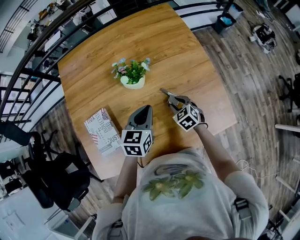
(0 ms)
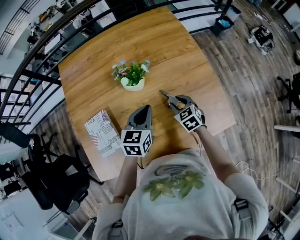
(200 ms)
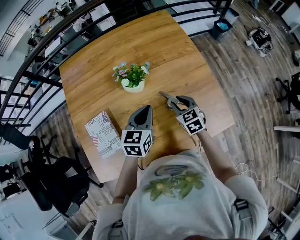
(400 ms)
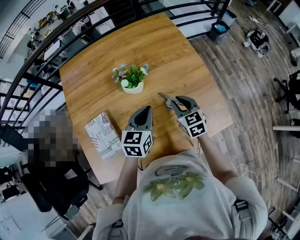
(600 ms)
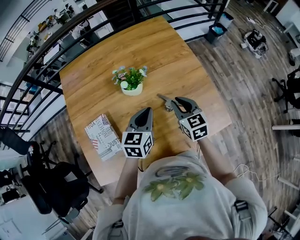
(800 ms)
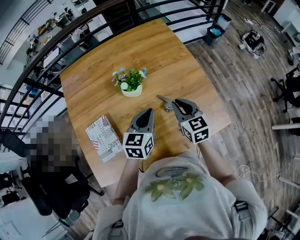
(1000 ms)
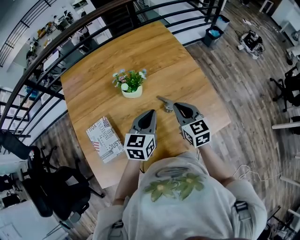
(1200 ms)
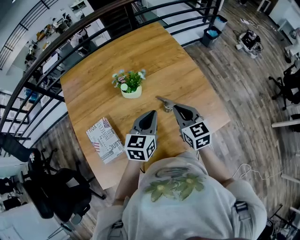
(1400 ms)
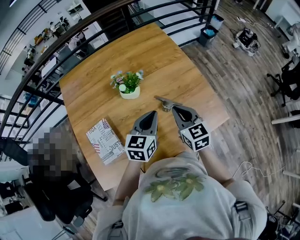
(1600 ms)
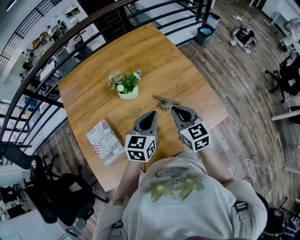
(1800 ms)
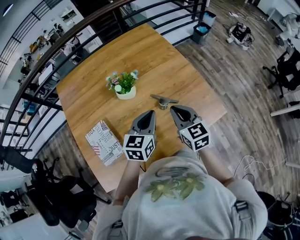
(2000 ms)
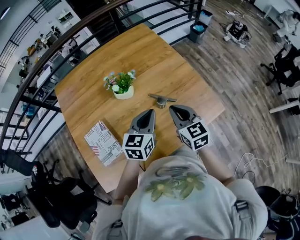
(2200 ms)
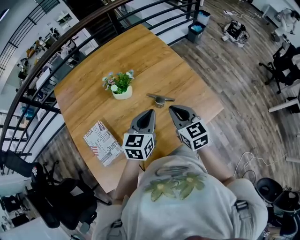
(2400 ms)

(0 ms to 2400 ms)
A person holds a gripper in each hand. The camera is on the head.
0 ms - 1200 ms: The right gripper is displaced upward by some 20 cm, turns by roughly 30 degrees, and closes its fingers. Meanwhile the left gripper heads upward, covering some 5 cm.
1200 ms - 2400 ms: The right gripper goes about 5 cm backward.

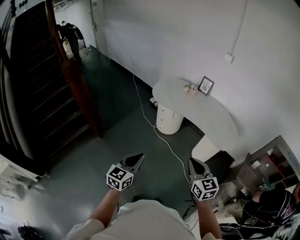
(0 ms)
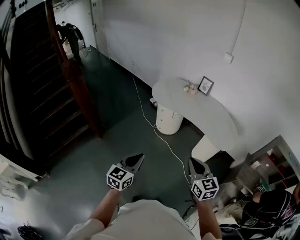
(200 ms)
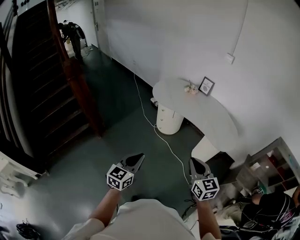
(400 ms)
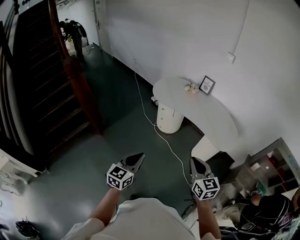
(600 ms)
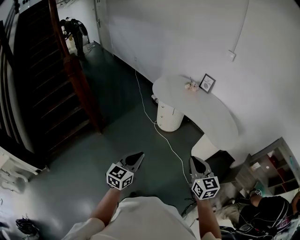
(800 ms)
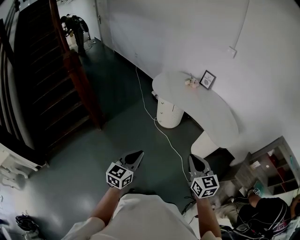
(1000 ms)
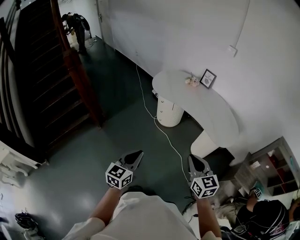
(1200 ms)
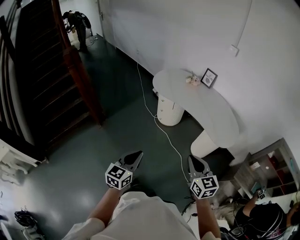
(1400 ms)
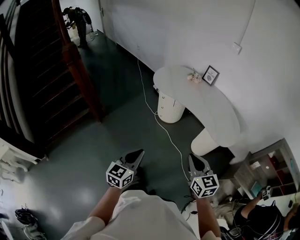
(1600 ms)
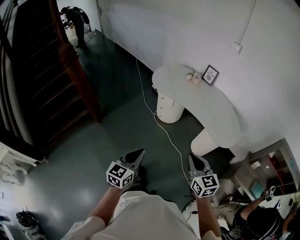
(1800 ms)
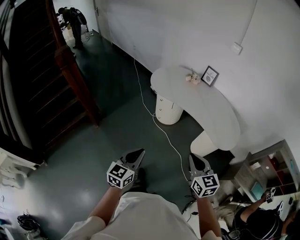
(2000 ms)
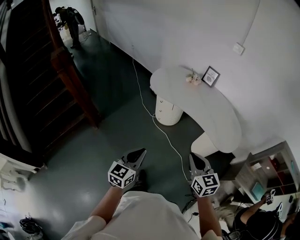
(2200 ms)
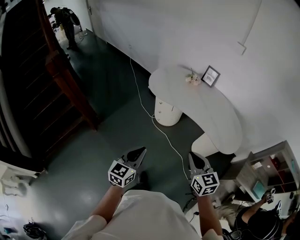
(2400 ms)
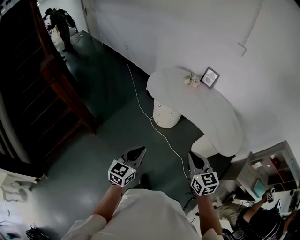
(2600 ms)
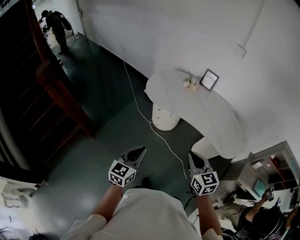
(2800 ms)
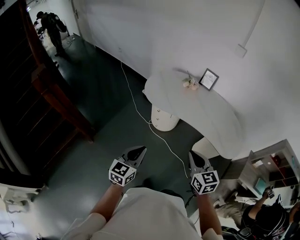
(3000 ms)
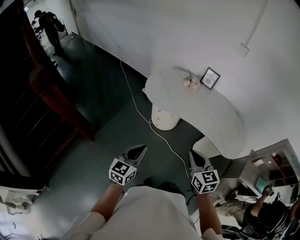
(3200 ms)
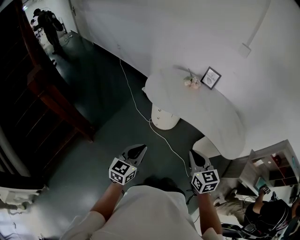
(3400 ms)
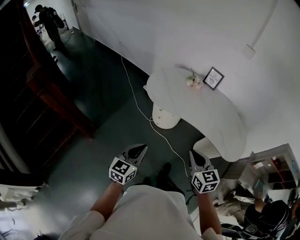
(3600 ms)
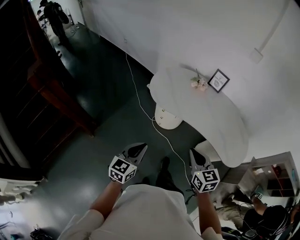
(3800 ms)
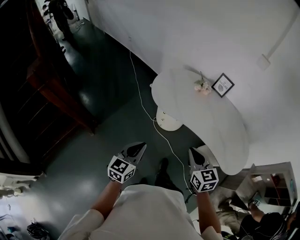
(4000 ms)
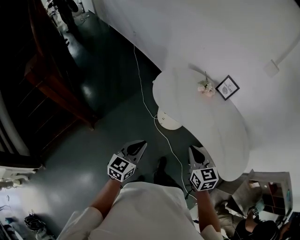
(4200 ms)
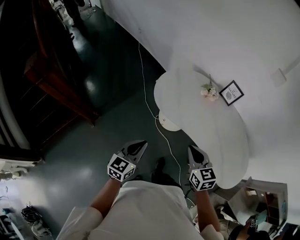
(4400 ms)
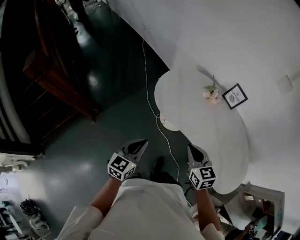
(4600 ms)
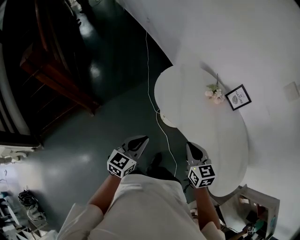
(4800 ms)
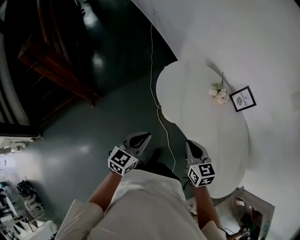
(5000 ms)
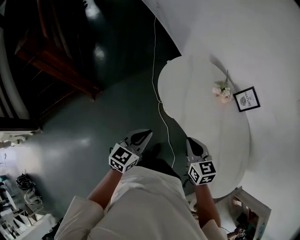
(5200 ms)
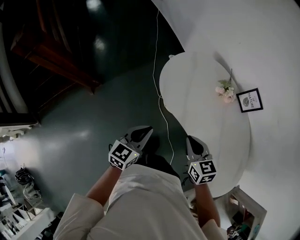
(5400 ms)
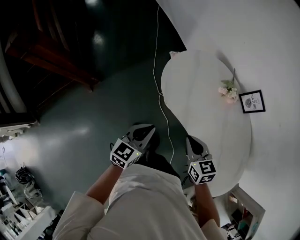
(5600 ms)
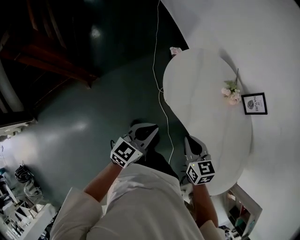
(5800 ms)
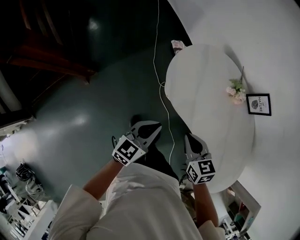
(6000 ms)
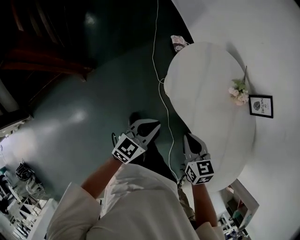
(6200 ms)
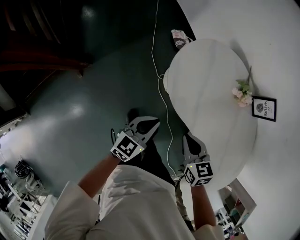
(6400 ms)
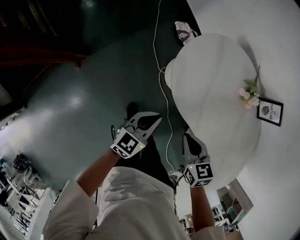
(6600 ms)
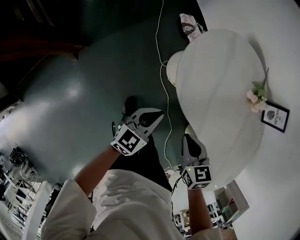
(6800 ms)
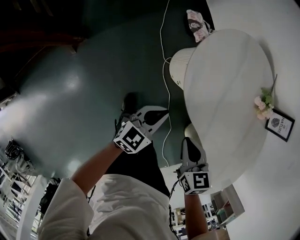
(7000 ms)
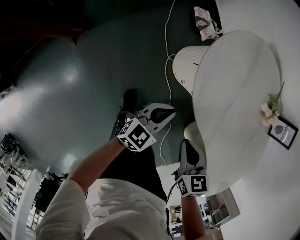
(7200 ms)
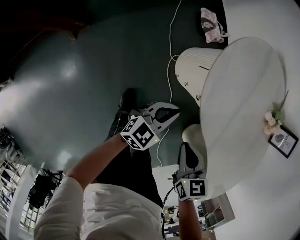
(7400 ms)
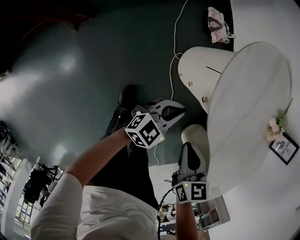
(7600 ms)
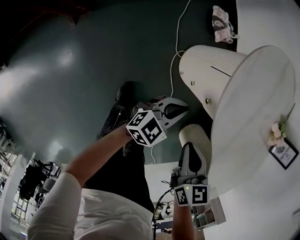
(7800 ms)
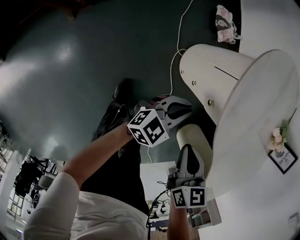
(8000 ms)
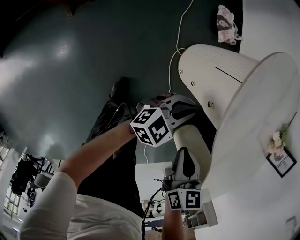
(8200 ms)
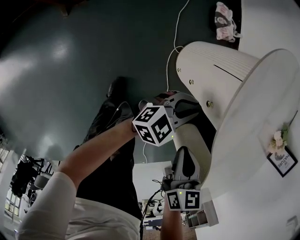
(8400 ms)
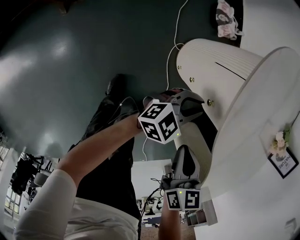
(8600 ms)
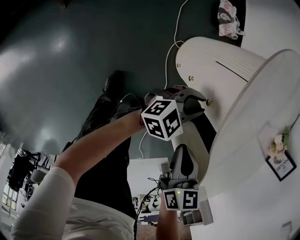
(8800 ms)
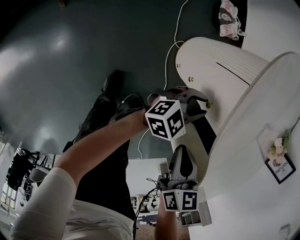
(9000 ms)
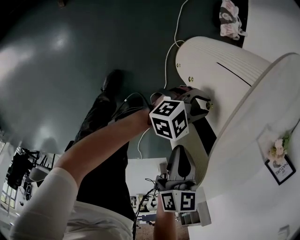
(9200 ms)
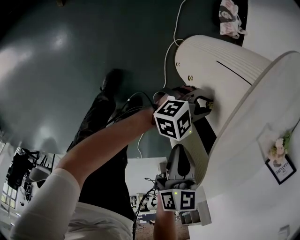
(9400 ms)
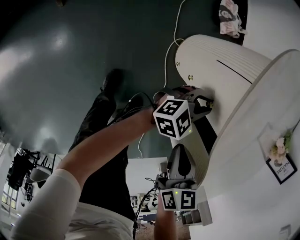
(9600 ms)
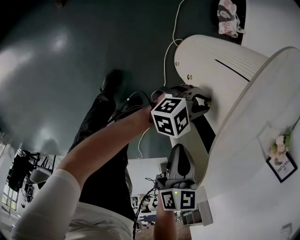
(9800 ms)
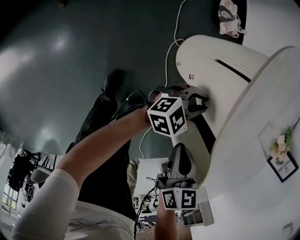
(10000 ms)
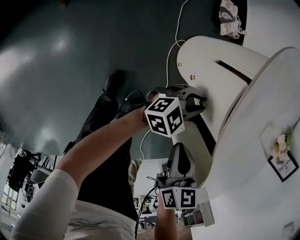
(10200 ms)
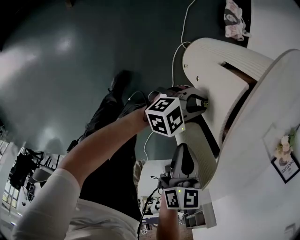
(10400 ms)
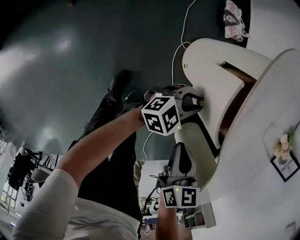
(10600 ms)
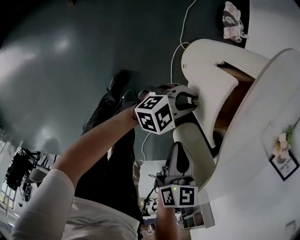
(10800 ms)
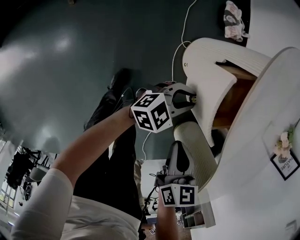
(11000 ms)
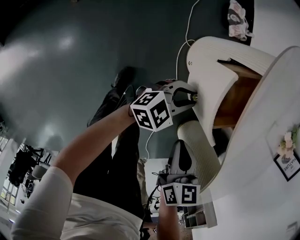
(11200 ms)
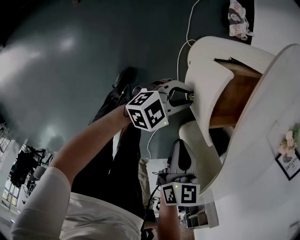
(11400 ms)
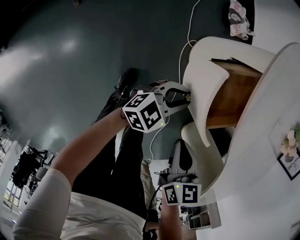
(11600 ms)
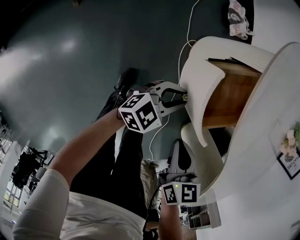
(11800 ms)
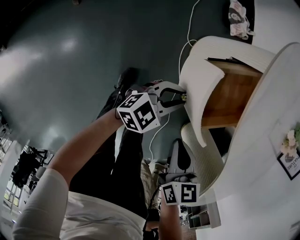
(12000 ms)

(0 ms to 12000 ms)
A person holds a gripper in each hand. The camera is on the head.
0 ms - 1600 ms: The grippers both shift to the right by approximately 5 cm.
1600 ms - 3000 ms: The left gripper shifts roughly 30 cm forward, while the right gripper moves forward and to the left, roughly 25 cm.
3000 ms - 4400 ms: Both grippers move forward, about 20 cm.
4400 ms - 6000 ms: The two grippers go about 25 cm forward and downward. The right gripper turns by about 20 degrees.
6000 ms - 7600 ms: Both grippers travel together downward, about 30 cm.
7600 ms - 9000 ms: The right gripper shifts approximately 10 cm downward; the left gripper is displaced downward, to the right and forward by some 15 cm, and opens up.
9000 ms - 10400 ms: The grippers stay close to where they were, moving slightly.
10400 ms - 12000 ms: The left gripper shifts roughly 10 cm backward and to the left; the right gripper shifts by roughly 5 cm.

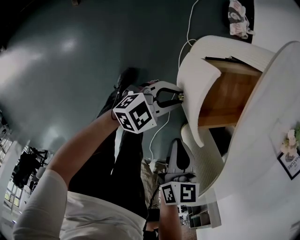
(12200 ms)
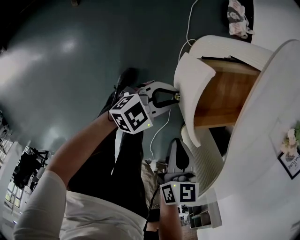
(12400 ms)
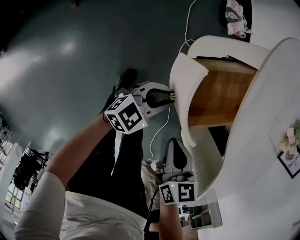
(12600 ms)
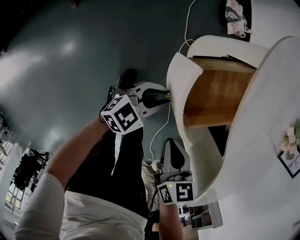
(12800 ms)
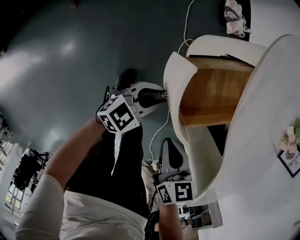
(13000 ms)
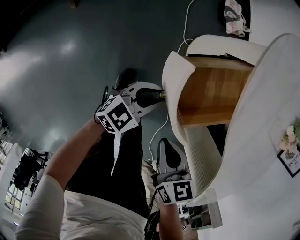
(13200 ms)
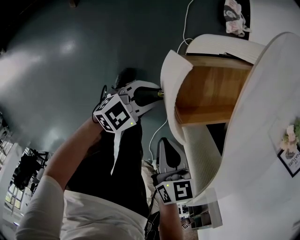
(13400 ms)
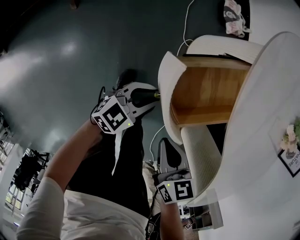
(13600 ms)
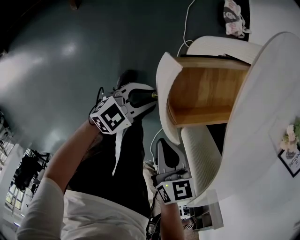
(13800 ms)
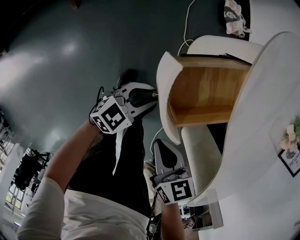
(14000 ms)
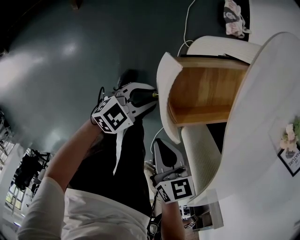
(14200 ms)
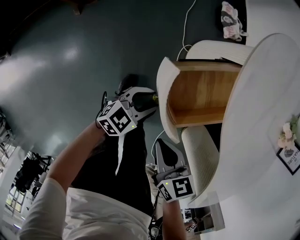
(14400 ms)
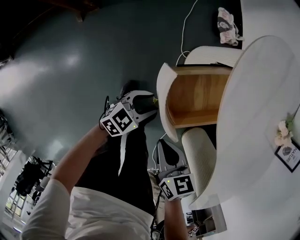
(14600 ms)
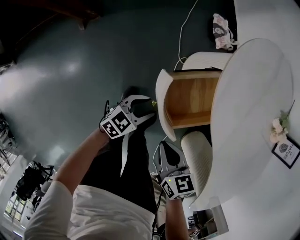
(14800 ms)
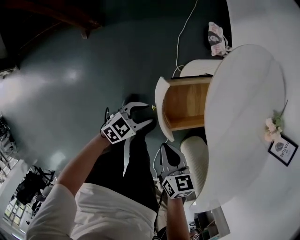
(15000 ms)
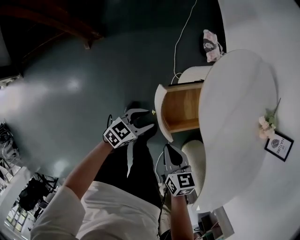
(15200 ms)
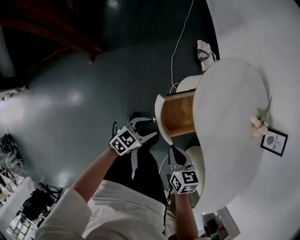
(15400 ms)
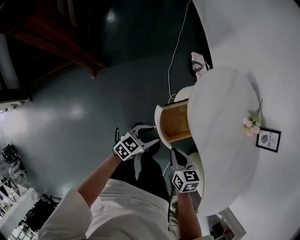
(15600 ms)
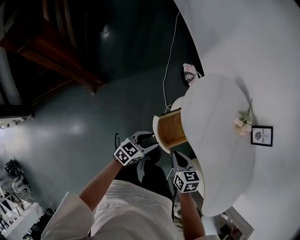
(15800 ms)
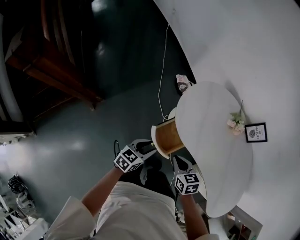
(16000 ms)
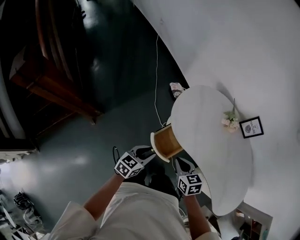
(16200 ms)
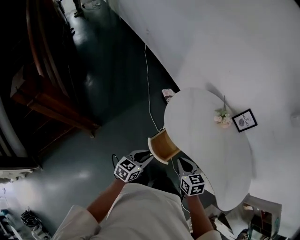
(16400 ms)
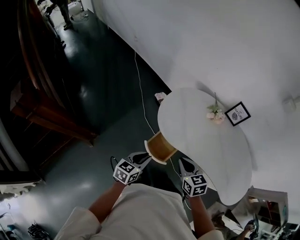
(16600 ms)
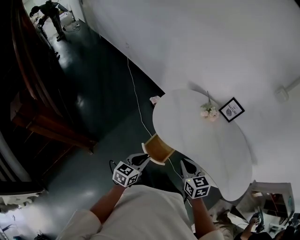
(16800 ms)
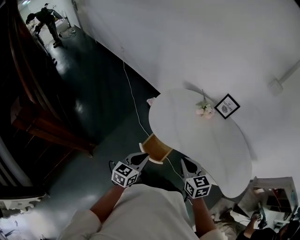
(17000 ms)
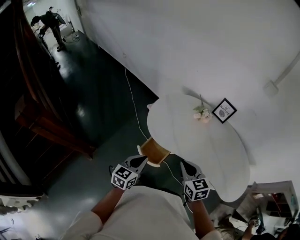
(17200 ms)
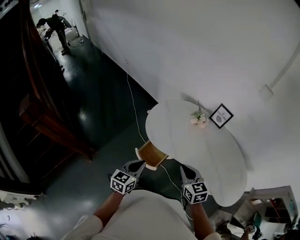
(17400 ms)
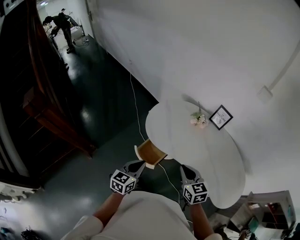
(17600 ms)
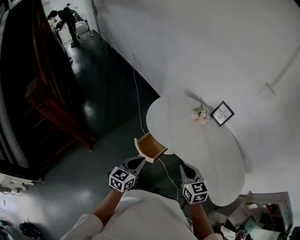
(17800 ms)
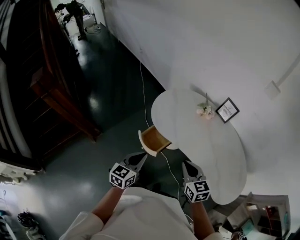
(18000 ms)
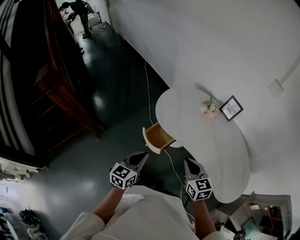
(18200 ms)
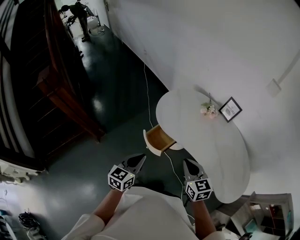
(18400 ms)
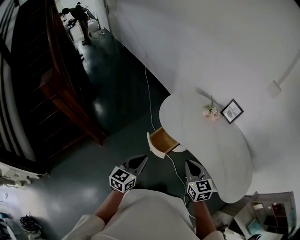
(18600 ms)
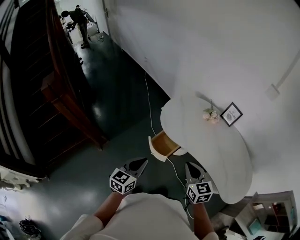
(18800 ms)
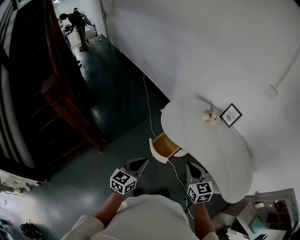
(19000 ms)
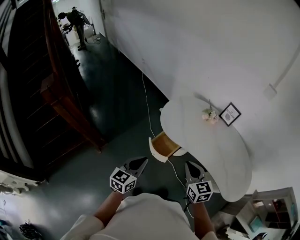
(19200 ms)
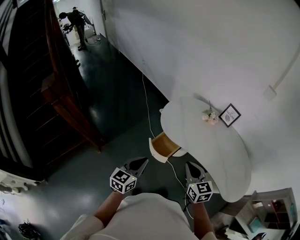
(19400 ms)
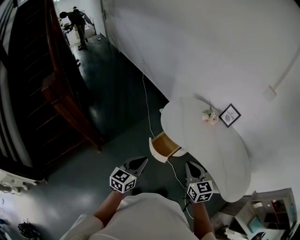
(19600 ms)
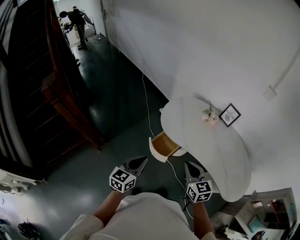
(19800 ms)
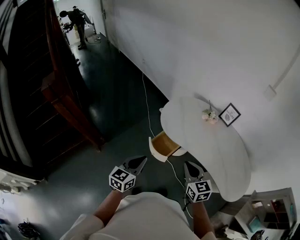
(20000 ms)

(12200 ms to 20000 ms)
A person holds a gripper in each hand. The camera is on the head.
12200 ms - 13800 ms: The left gripper is displaced to the left by about 5 cm.
13800 ms - 15400 ms: Both grippers travel together upward, some 15 cm. The left gripper opens its fingers.
15400 ms - 16800 ms: The two grippers go approximately 30 cm upward. The left gripper closes up, while the right gripper turns by some 30 degrees.
16800 ms - 18400 ms: The left gripper travels backward, upward and to the right by some 20 cm; the right gripper is displaced backward, to the right and upward by roughly 20 cm.
18400 ms - 20000 ms: The grippers both shift to the left by about 5 cm.

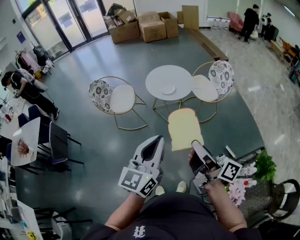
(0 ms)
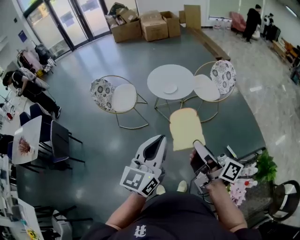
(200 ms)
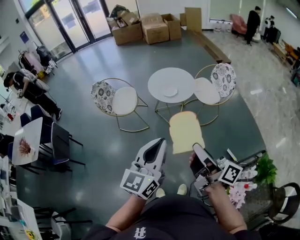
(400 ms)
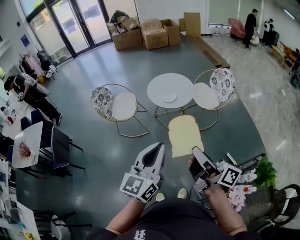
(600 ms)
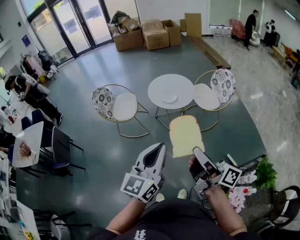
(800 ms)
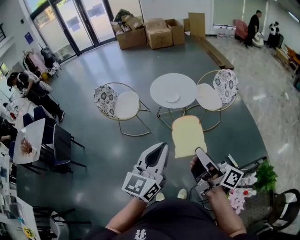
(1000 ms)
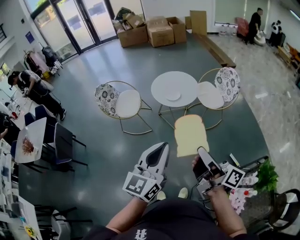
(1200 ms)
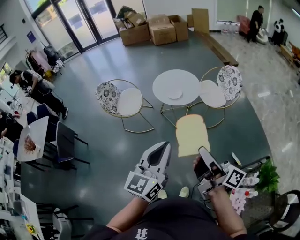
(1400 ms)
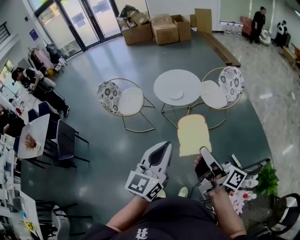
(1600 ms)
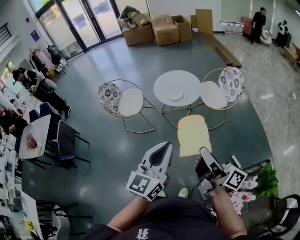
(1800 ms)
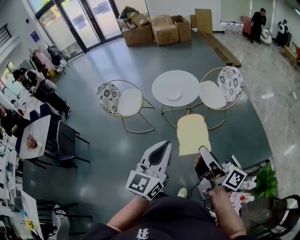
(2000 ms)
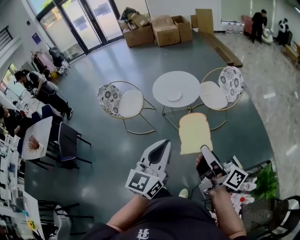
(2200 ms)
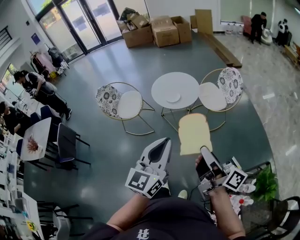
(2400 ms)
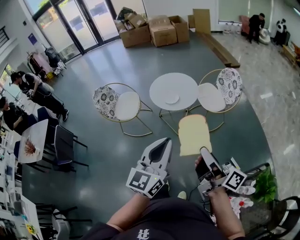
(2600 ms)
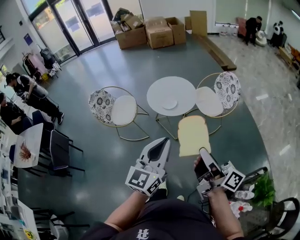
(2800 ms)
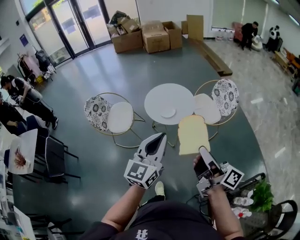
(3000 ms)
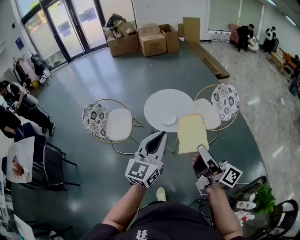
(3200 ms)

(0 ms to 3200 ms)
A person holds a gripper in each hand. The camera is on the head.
0 ms - 1600 ms: The right gripper goes some 5 cm to the right; the left gripper moves roughly 5 cm.
1600 ms - 3200 ms: Both grippers move forward, approximately 25 cm.
